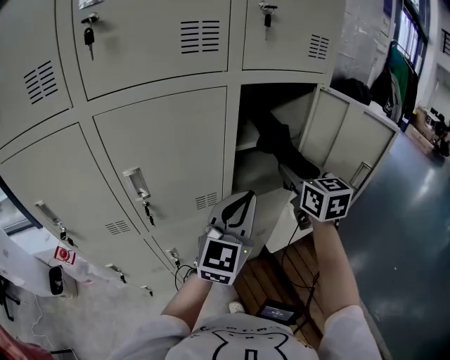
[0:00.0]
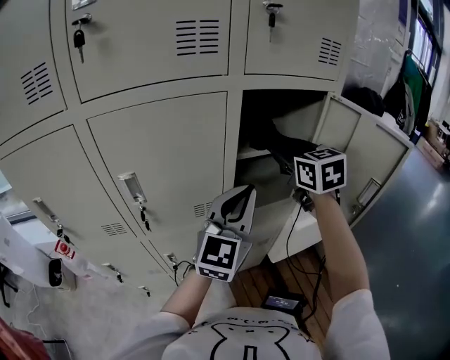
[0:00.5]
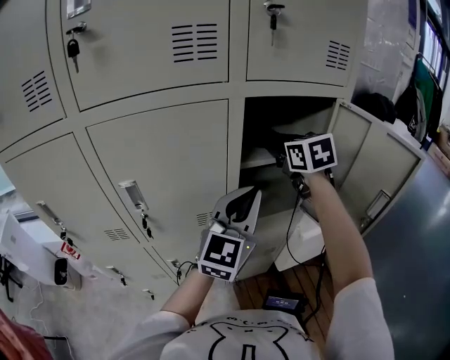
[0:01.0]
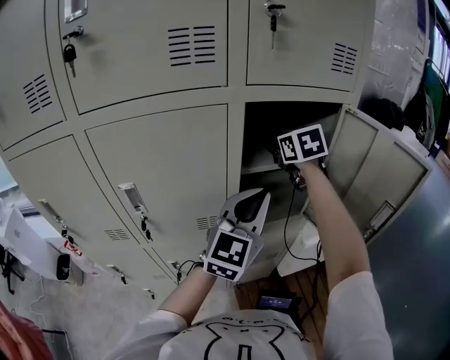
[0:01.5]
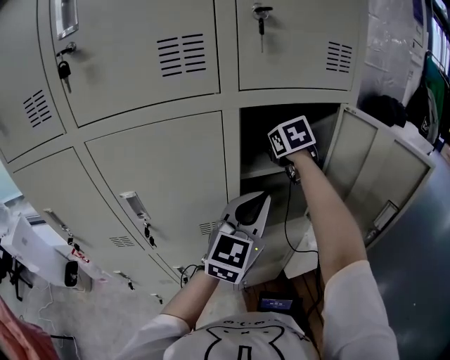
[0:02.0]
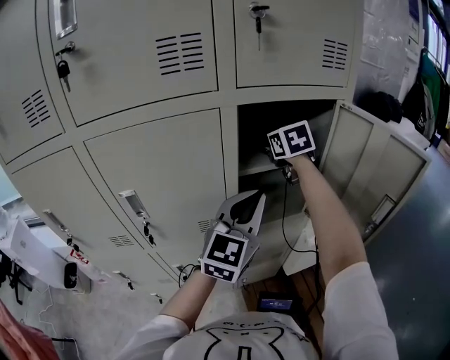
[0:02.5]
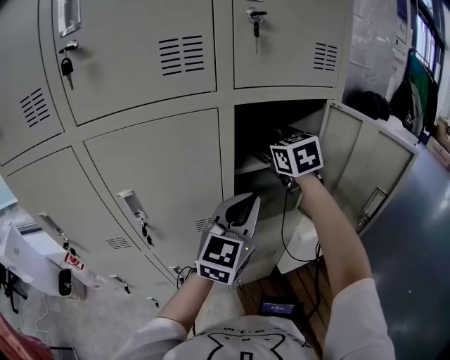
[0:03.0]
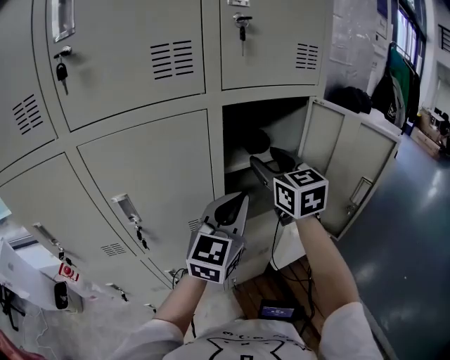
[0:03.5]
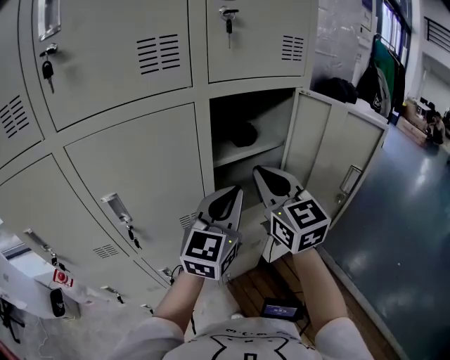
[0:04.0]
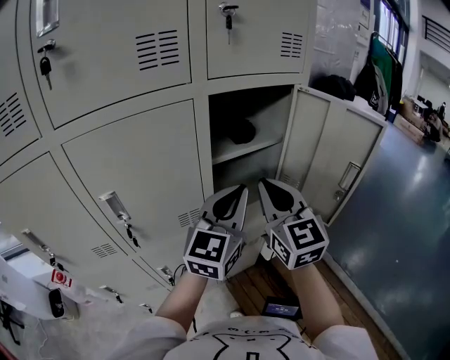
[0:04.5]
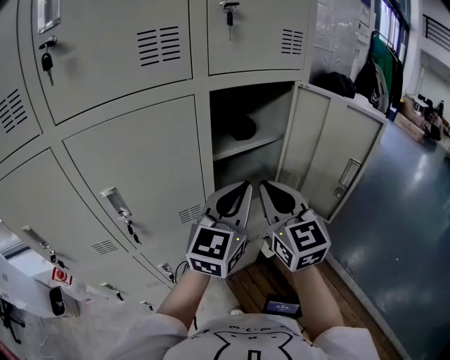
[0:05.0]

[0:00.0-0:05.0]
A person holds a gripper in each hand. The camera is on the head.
0:00.0 to 0:02.5: The right gripper shifts about 20 cm forward, rotates about 20 degrees, and opens up; the left gripper is displaced forward by about 10 cm.
0:02.5 to 0:05.0: The right gripper heads backward, covering about 25 cm, changes its angle by some 30 degrees, and closes up; the left gripper moves approximately 5 cm.

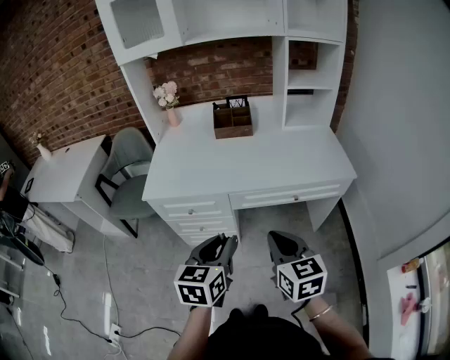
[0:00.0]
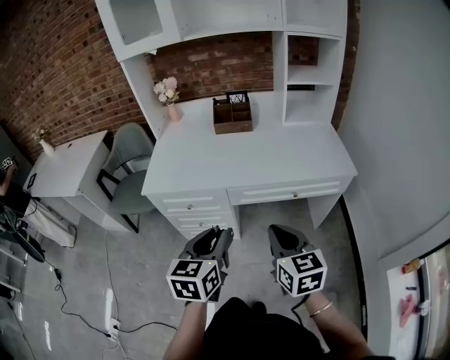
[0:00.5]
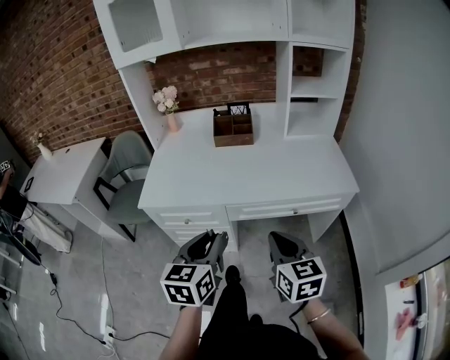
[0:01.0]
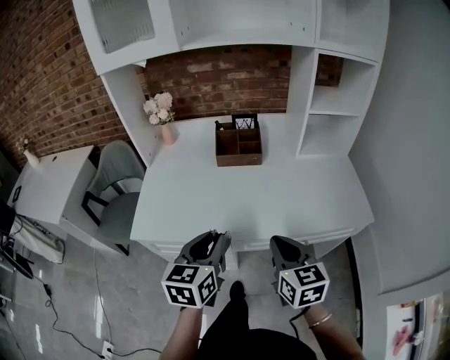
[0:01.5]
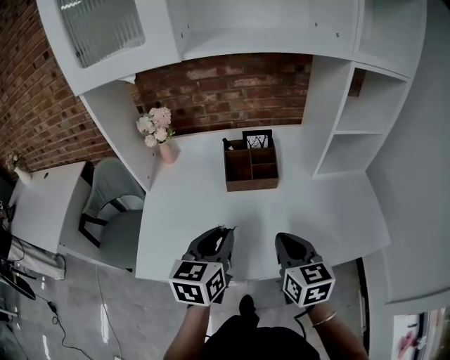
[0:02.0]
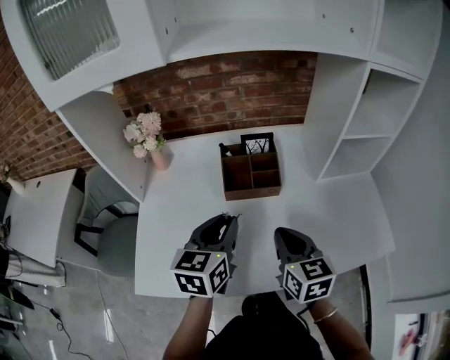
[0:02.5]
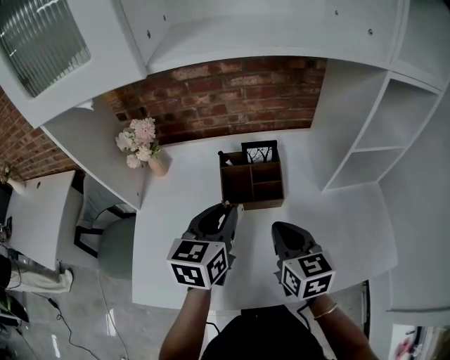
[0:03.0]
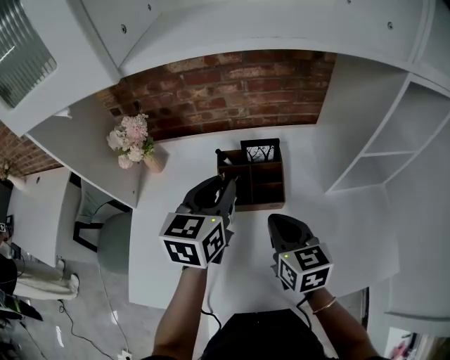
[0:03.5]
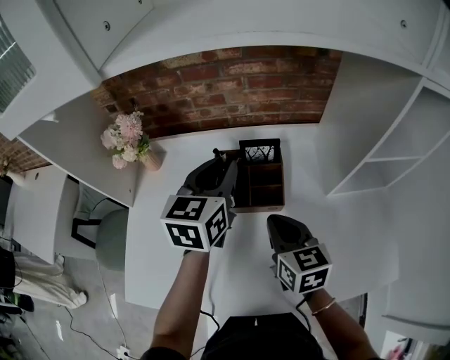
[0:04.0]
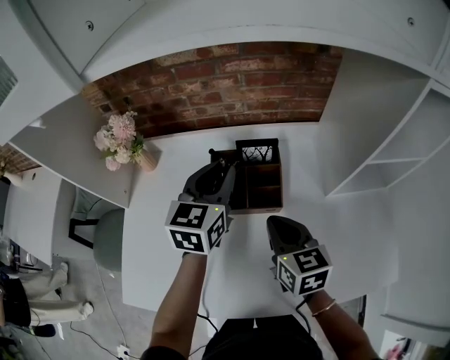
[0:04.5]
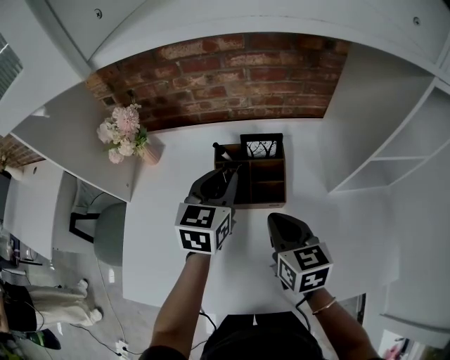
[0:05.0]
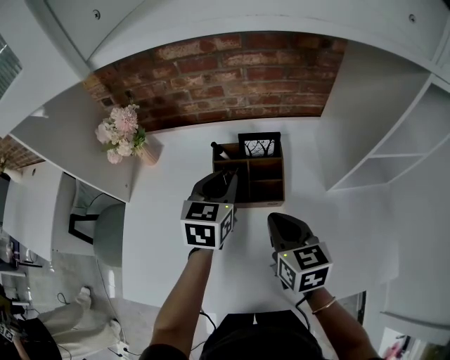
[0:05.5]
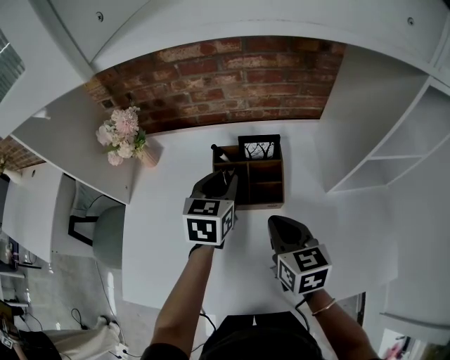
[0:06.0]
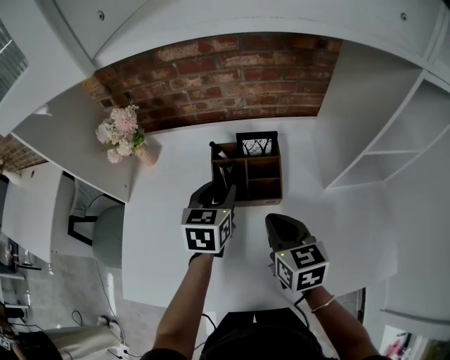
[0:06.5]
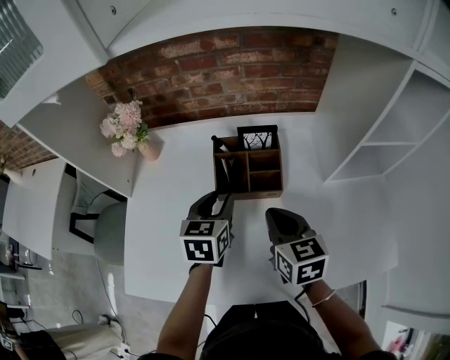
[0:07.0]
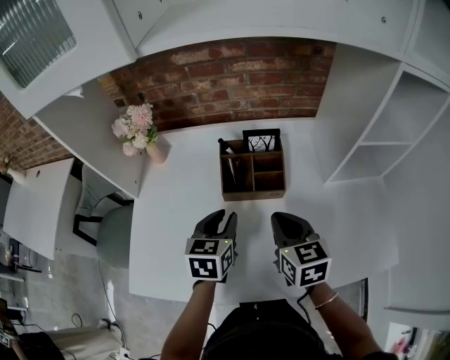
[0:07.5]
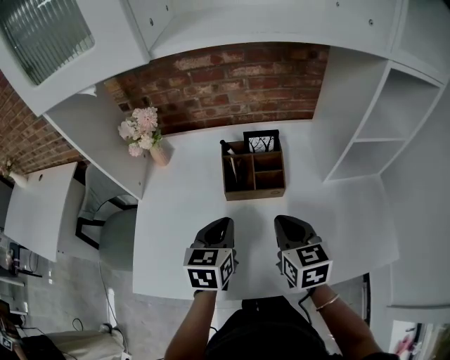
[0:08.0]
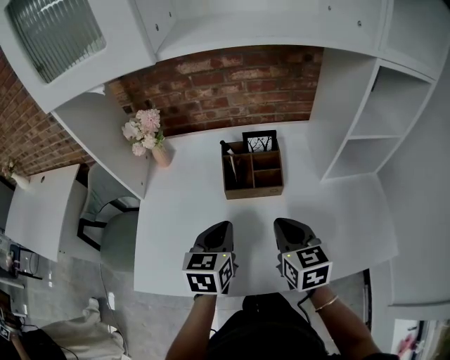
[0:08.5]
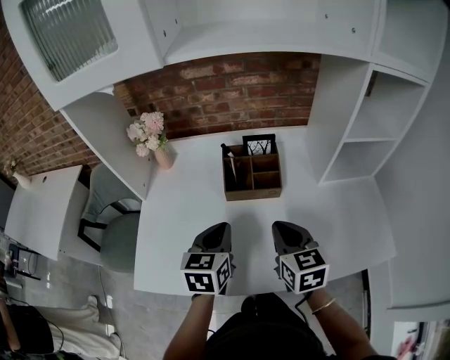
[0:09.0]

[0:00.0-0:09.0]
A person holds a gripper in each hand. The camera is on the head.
0:00.0 to 0:02.0: Both grippers travel together forward, some 40 cm.
0:02.0 to 0:04.5: The two grippers go some 25 cm forward.
0:04.5 to 0:07.0: The left gripper shifts roughly 15 cm downward and backward.
0:07.0 to 0:09.0: The right gripper goes about 10 cm backward, while the left gripper is displaced backward by some 15 cm, and closes up.

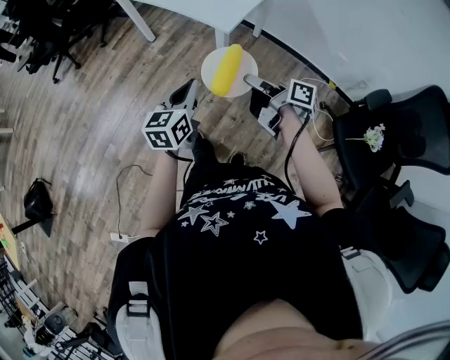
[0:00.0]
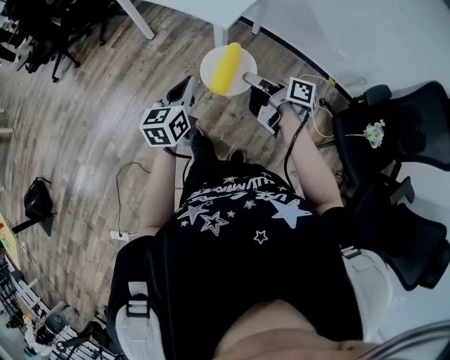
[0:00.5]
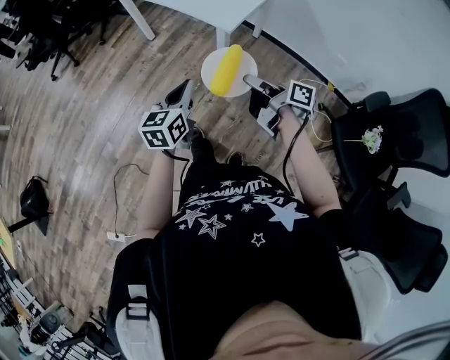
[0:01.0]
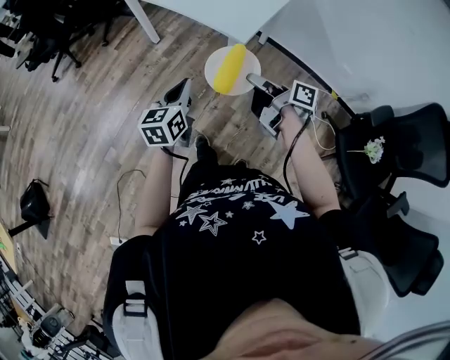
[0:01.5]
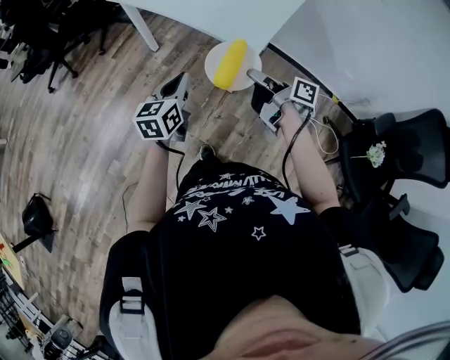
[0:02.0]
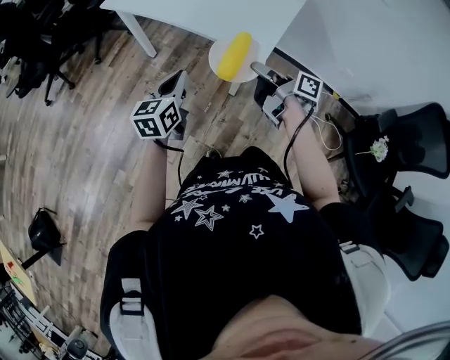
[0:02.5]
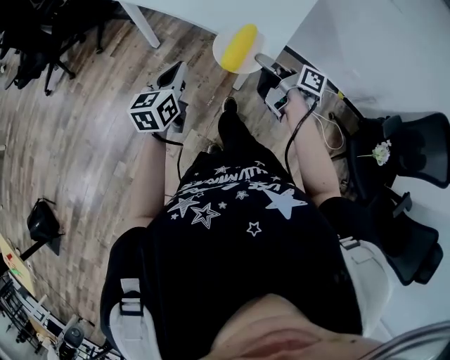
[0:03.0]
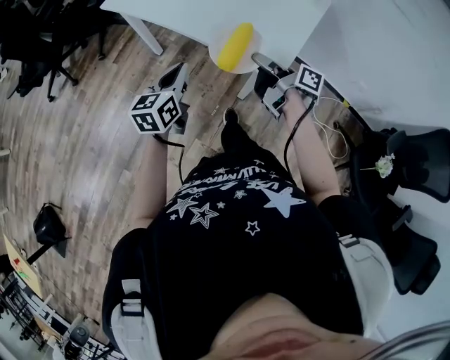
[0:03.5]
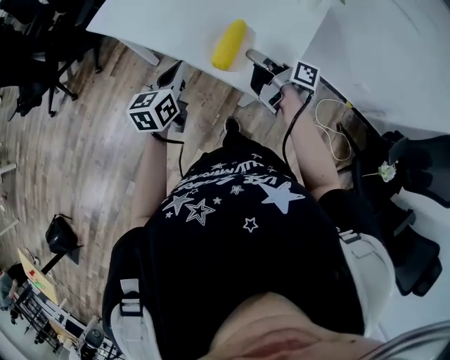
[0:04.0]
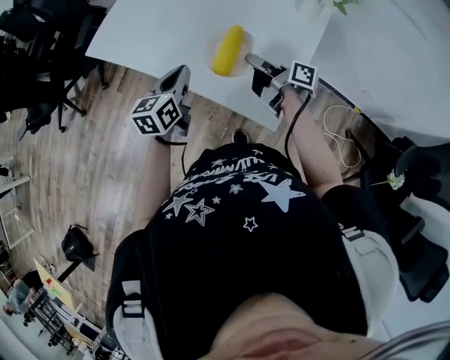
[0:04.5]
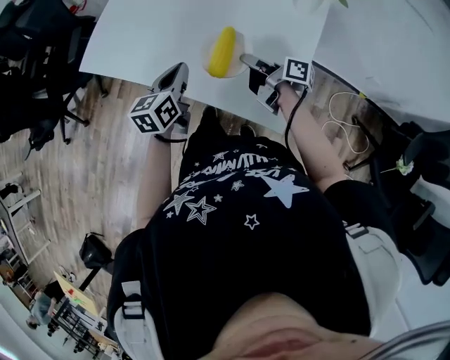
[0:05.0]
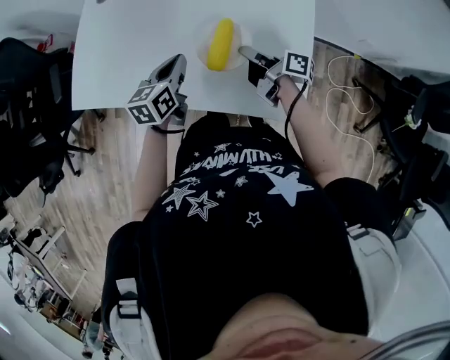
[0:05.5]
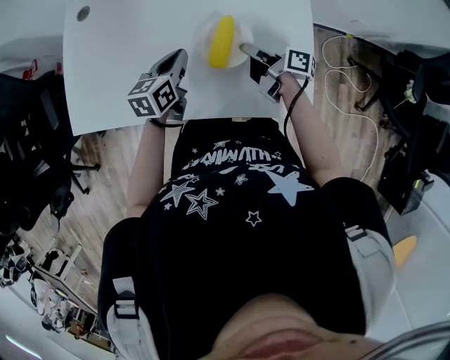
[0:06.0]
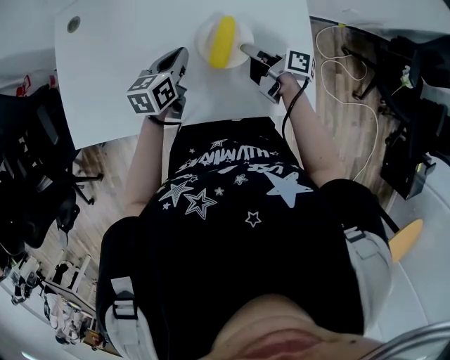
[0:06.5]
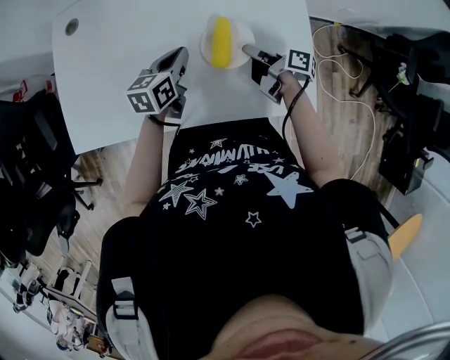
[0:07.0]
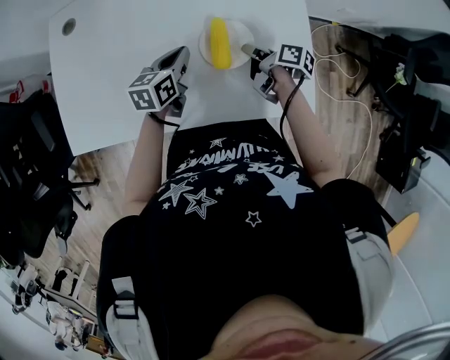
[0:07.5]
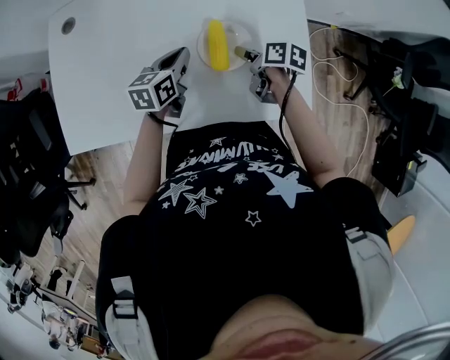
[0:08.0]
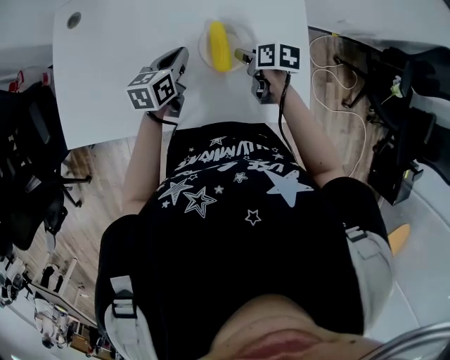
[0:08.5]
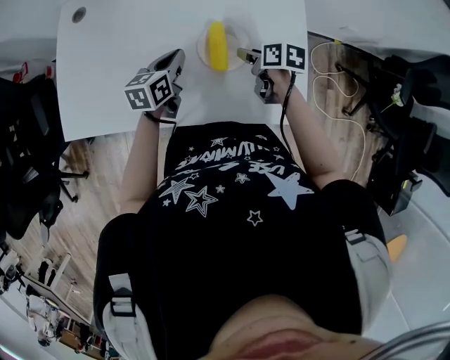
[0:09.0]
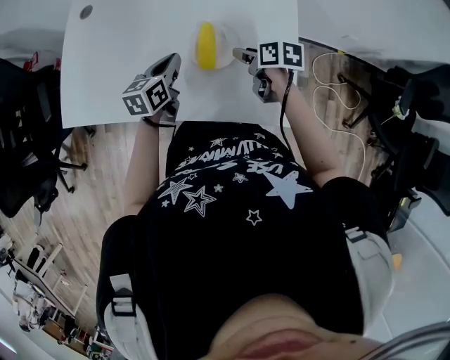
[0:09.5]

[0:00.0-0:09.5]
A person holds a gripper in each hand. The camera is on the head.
0:00.0 to 0:02.0: The left gripper shifts by some 20 cm.
0:02.0 to 0:04.0: The left gripper changes place by some 30 cm.
0:04.0 to 0:05.5: The left gripper changes place by some 25 cm, and rotates roughly 20 degrees.
0:05.5 to 0:07.5: The left gripper ends up approximately 10 cm from where it was.
0:07.5 to 0:09.5: The left gripper changes place by roughly 5 cm.

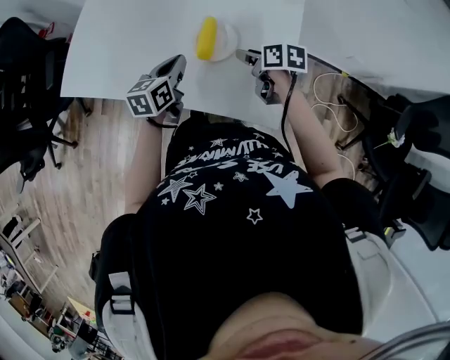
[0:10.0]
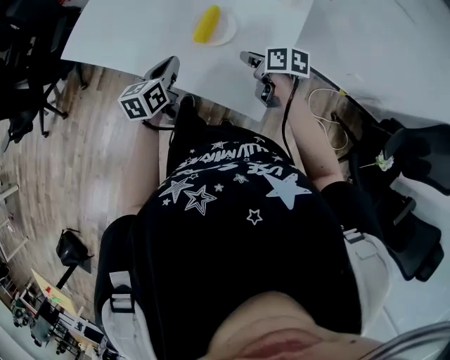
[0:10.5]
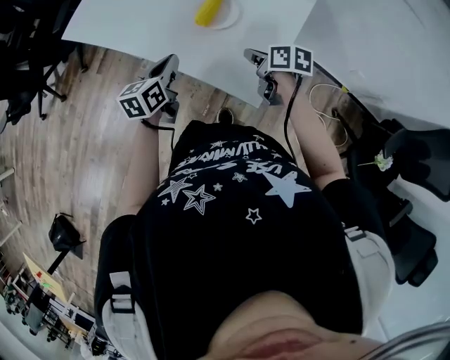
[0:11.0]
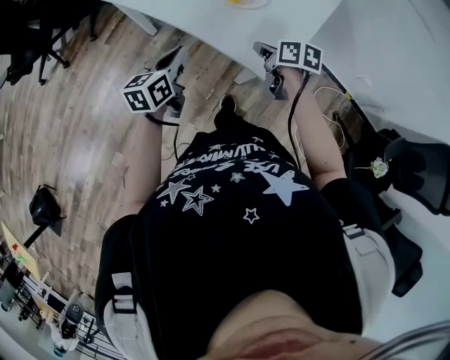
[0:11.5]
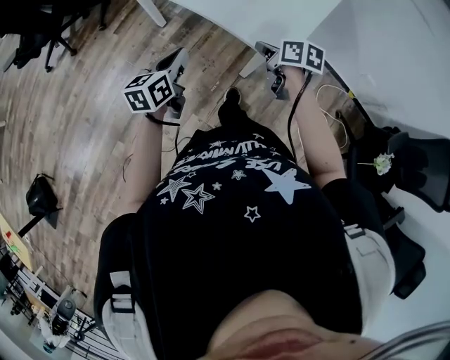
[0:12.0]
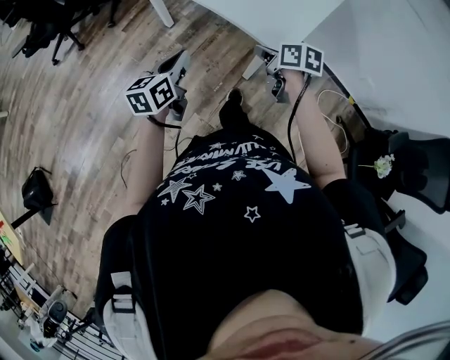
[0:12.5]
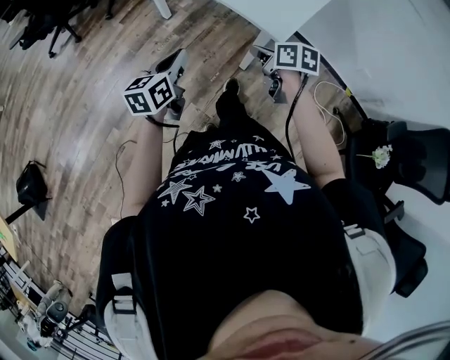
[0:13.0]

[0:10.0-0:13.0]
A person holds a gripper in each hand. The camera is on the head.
0:10.0 to 0:11.5: The left gripper moves about 25 cm, and rotates about 20 degrees.
0:11.5 to 0:13.0: The left gripper ends up some 25 cm from where it was.
